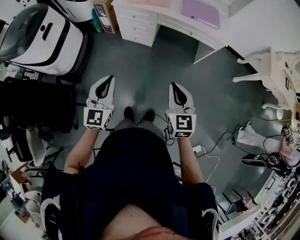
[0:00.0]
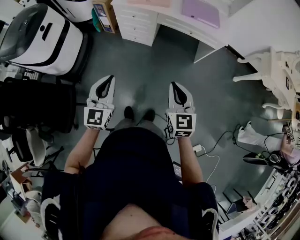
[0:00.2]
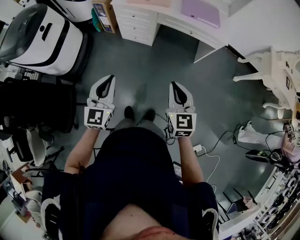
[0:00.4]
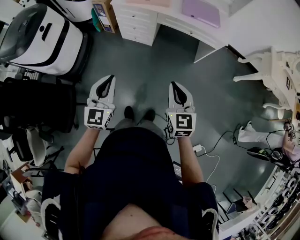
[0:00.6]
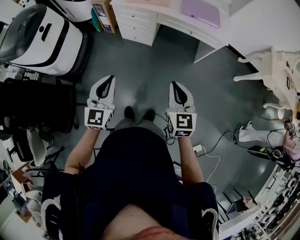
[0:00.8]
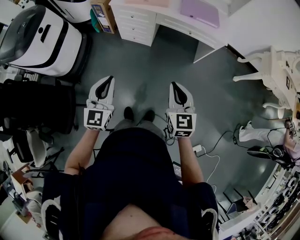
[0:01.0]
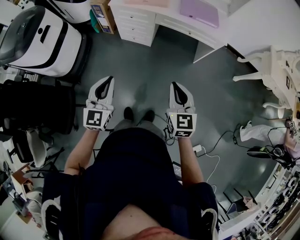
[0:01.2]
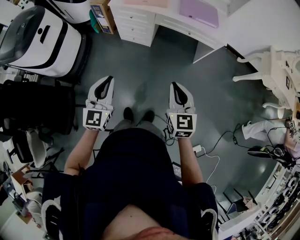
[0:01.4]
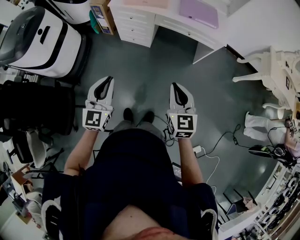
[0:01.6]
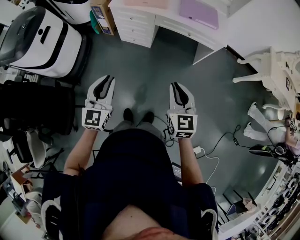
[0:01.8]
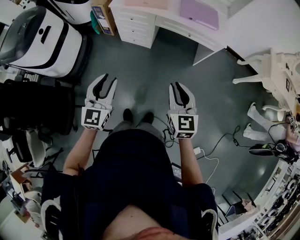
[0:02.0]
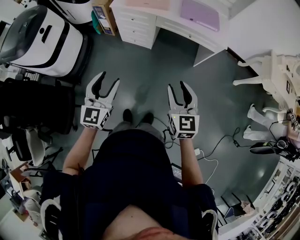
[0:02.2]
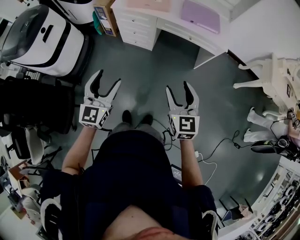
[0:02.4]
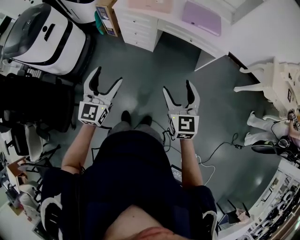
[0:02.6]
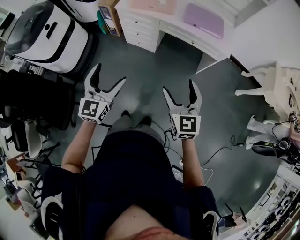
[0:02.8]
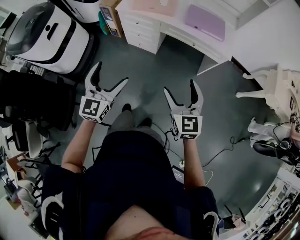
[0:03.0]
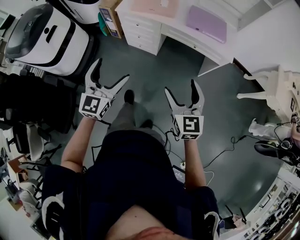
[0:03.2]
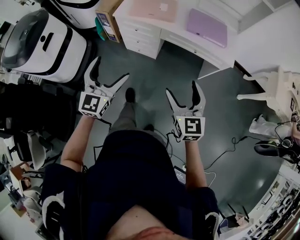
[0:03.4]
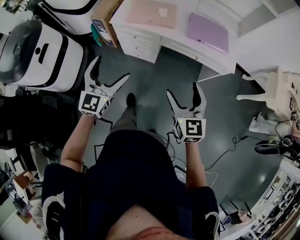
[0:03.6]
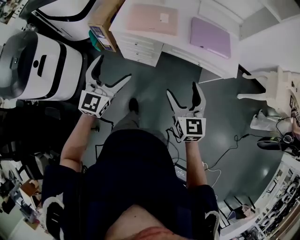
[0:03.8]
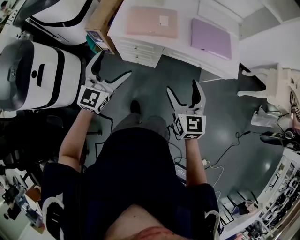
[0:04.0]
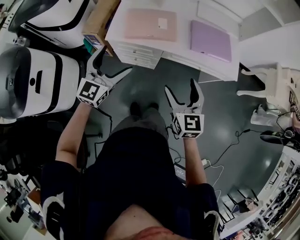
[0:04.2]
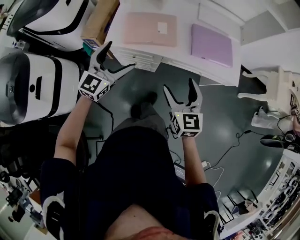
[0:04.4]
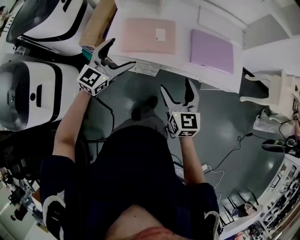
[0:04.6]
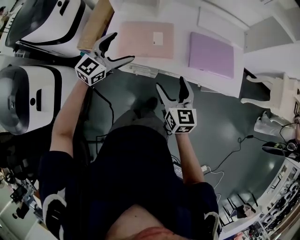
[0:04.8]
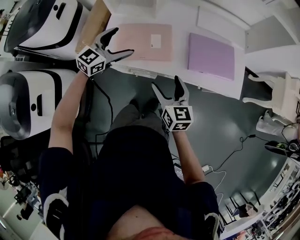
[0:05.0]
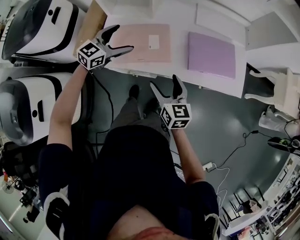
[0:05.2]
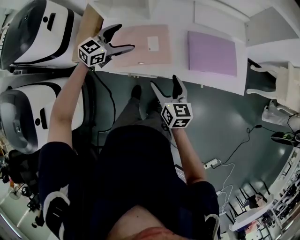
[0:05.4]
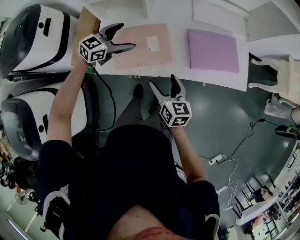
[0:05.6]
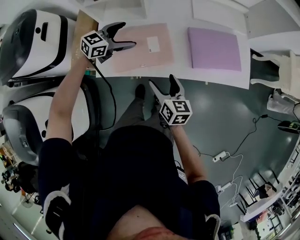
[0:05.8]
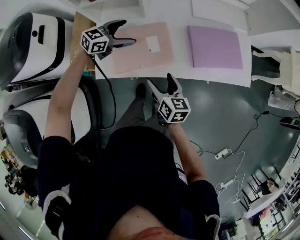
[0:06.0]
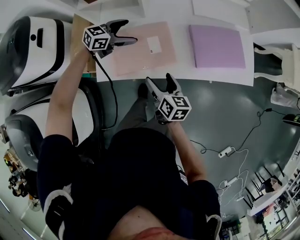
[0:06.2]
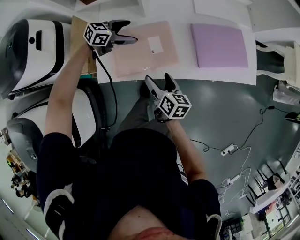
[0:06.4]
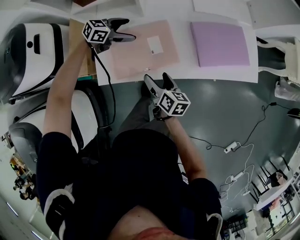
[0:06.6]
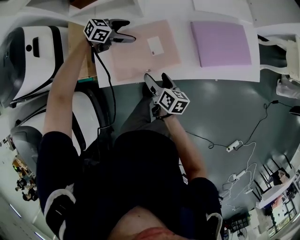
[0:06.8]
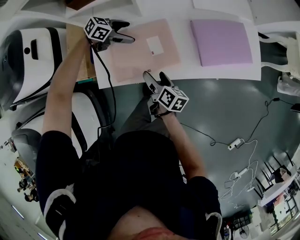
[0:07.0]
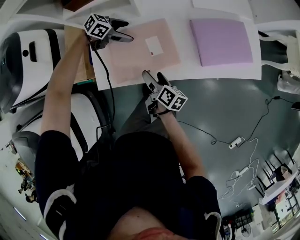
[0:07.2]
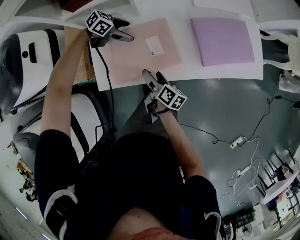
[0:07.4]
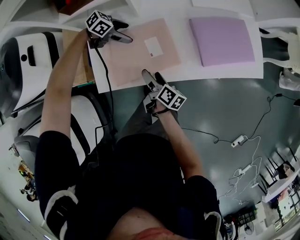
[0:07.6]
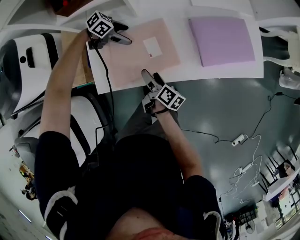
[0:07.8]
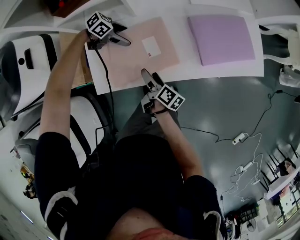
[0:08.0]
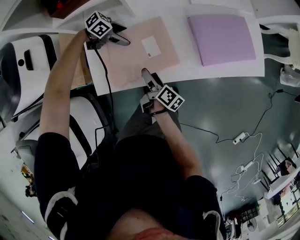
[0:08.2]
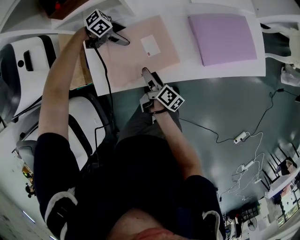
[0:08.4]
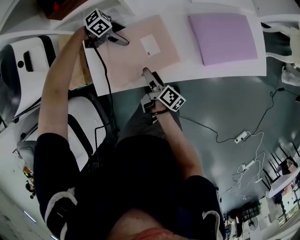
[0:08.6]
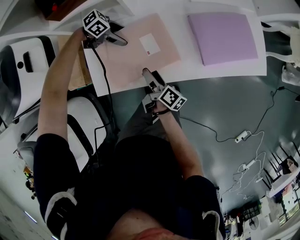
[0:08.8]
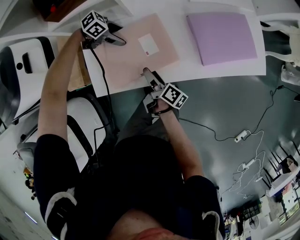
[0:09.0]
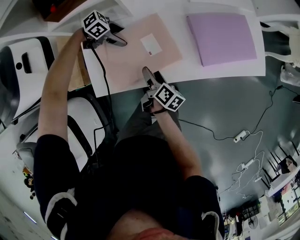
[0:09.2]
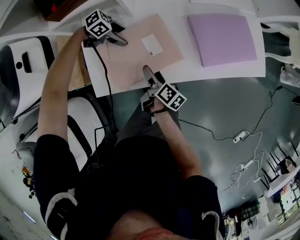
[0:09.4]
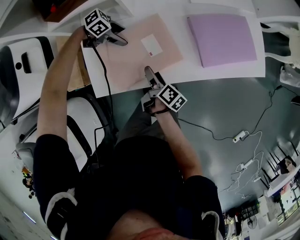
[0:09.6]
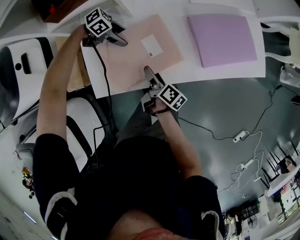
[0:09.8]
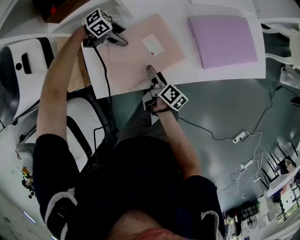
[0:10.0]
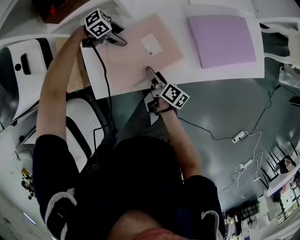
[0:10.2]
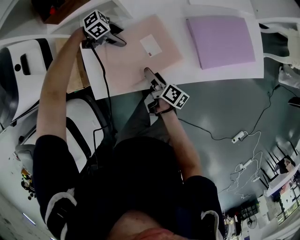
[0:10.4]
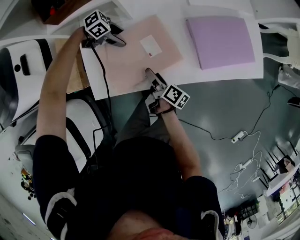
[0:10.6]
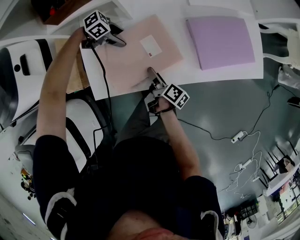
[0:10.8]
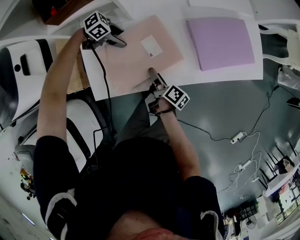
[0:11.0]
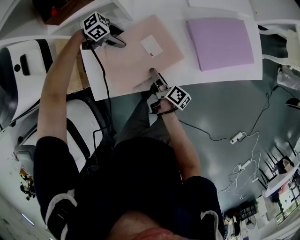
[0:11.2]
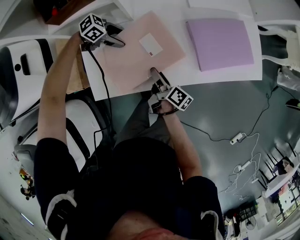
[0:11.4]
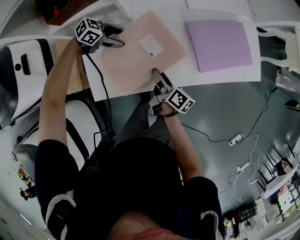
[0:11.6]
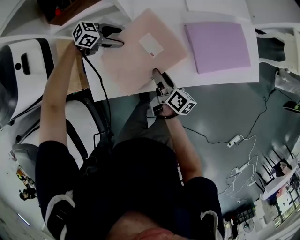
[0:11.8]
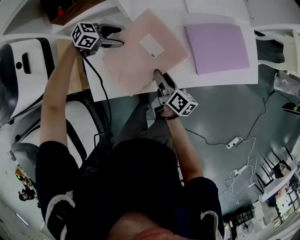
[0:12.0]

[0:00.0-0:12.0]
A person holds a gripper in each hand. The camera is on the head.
0:00.0 to 0:01.6: The grippers make only small movements.
0:01.6 to 0:03.0: The two grippers go roughly 5 cm forward. The left gripper opens up; the right gripper opens up.
0:03.0 to 0:04.4: The left gripper goes about 40 cm forward, and swivels approximately 30 degrees, while the right gripper is displaced forward and to the left by approximately 35 cm.
0:04.4 to 0:06.0: The left gripper heads forward and downward, covering some 35 cm, and changes its angle by about 40 degrees. Meanwhile the right gripper shifts roughly 20 cm forward, downward and to the left, and changes its angle by approximately 40 degrees.
0:06.0 to 0:07.6: The grippers both shift downward by approximately 15 cm. The left gripper swivels some 40 degrees, while the right gripper rolls clockwise, seen from behind, by approximately 40 degrees.
0:07.6 to 0:10.4: There are only small adjustments of the grippers.
0:10.4 to 0:12.0: Both grippers move upward, about 5 cm. The left gripper changes its angle by some 20 degrees.

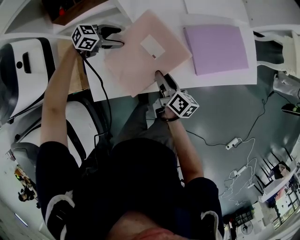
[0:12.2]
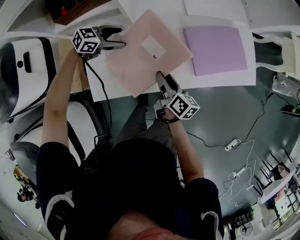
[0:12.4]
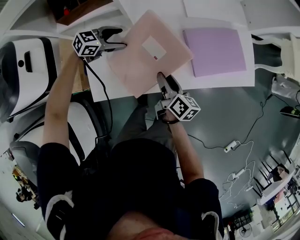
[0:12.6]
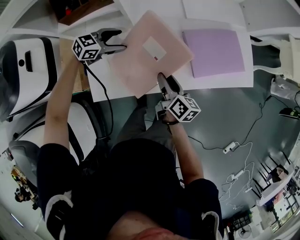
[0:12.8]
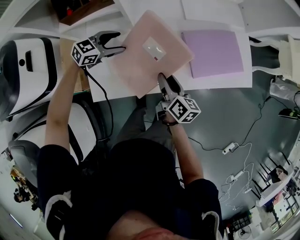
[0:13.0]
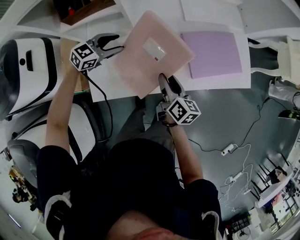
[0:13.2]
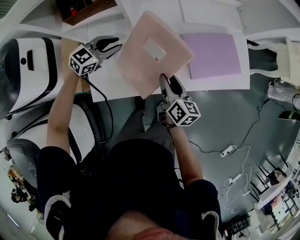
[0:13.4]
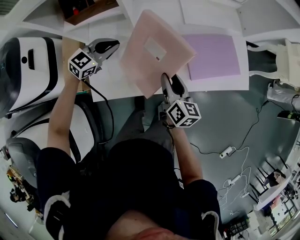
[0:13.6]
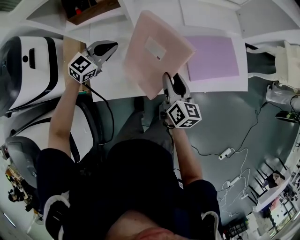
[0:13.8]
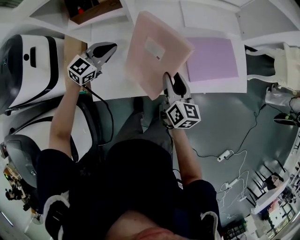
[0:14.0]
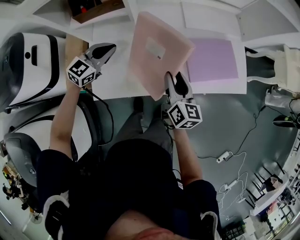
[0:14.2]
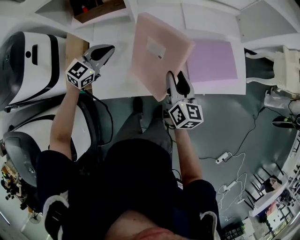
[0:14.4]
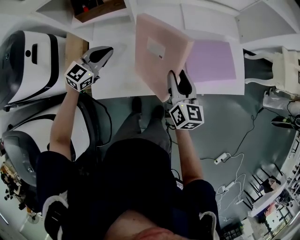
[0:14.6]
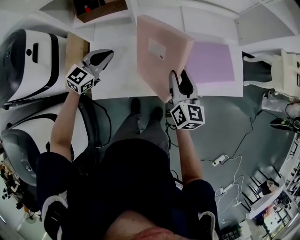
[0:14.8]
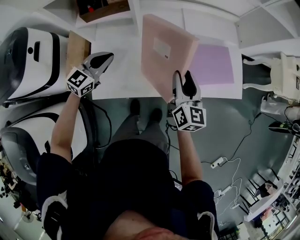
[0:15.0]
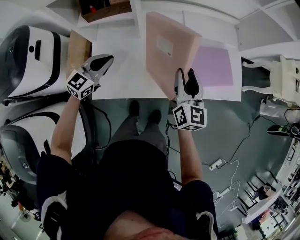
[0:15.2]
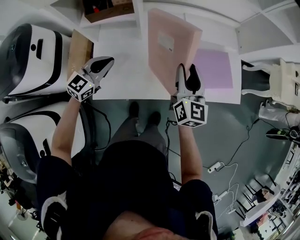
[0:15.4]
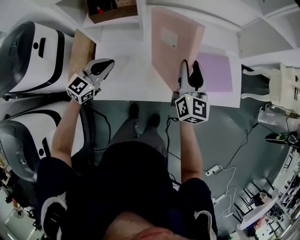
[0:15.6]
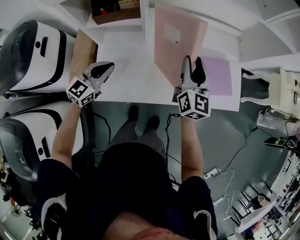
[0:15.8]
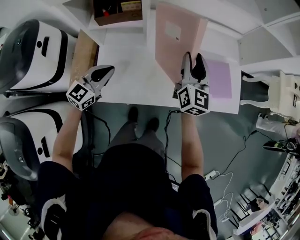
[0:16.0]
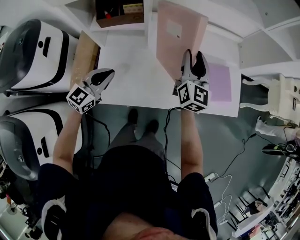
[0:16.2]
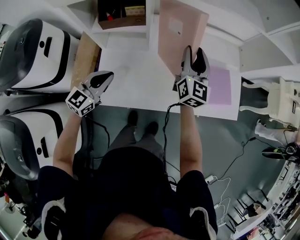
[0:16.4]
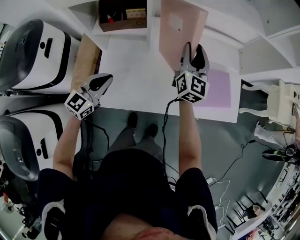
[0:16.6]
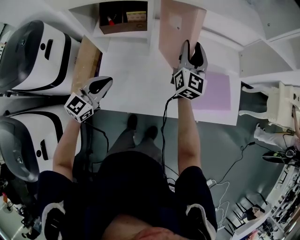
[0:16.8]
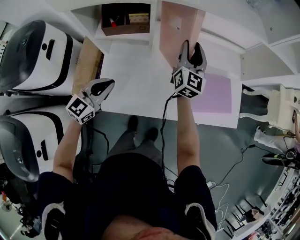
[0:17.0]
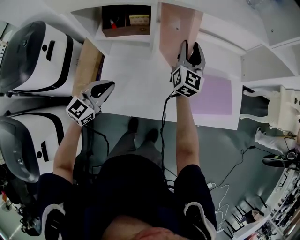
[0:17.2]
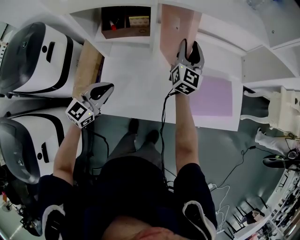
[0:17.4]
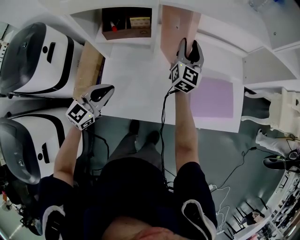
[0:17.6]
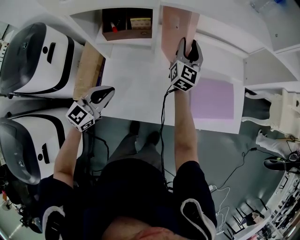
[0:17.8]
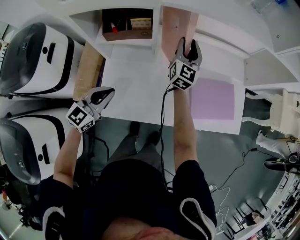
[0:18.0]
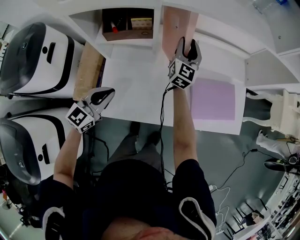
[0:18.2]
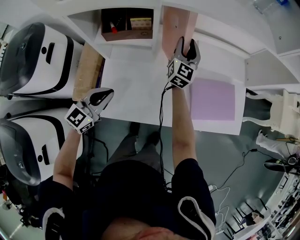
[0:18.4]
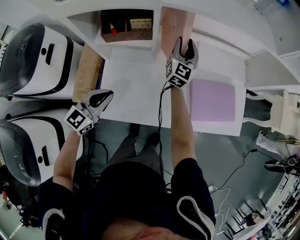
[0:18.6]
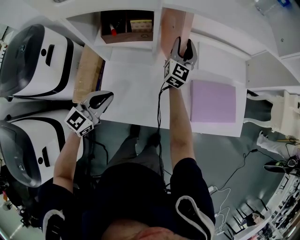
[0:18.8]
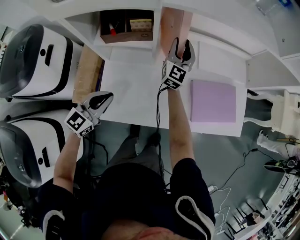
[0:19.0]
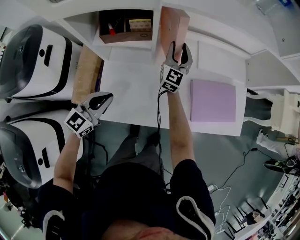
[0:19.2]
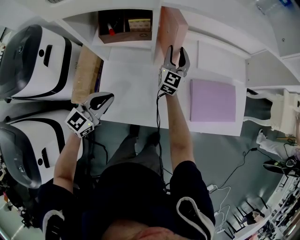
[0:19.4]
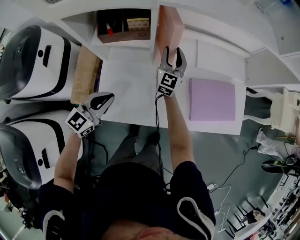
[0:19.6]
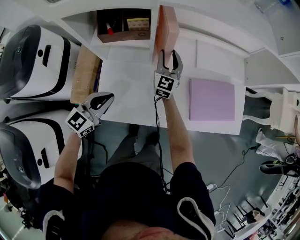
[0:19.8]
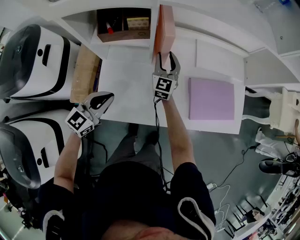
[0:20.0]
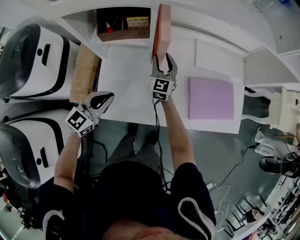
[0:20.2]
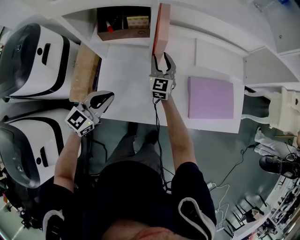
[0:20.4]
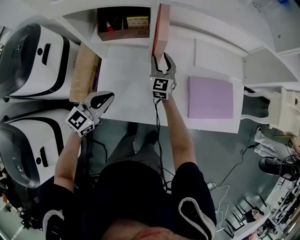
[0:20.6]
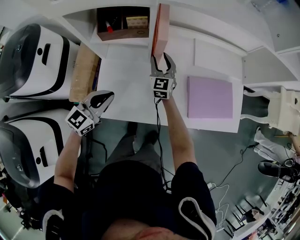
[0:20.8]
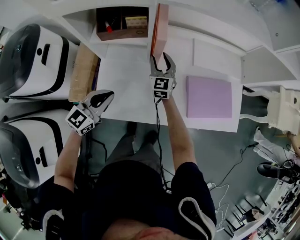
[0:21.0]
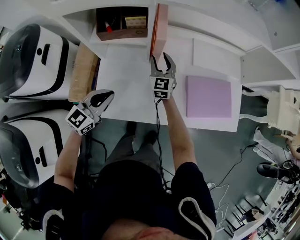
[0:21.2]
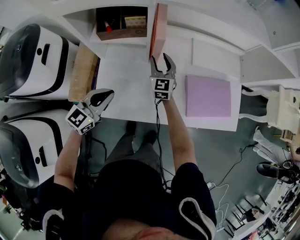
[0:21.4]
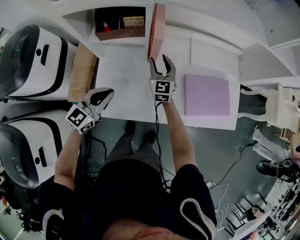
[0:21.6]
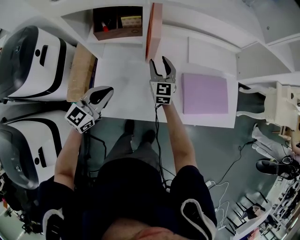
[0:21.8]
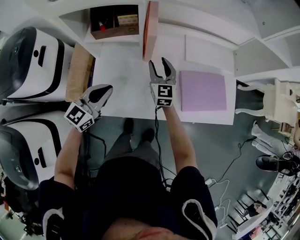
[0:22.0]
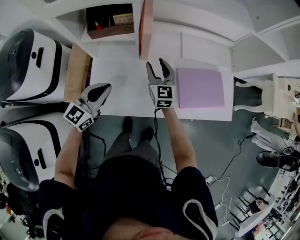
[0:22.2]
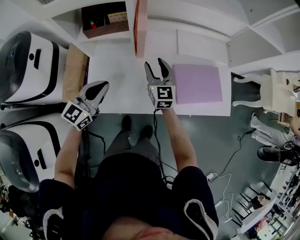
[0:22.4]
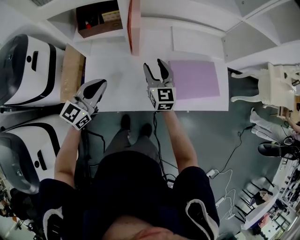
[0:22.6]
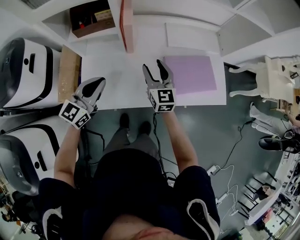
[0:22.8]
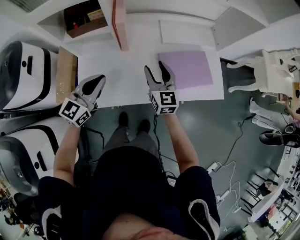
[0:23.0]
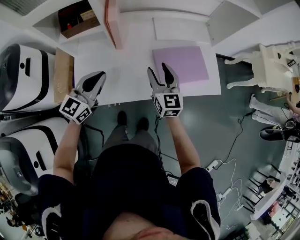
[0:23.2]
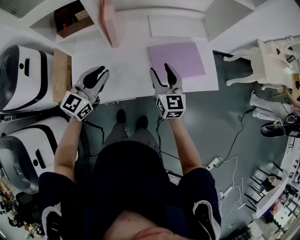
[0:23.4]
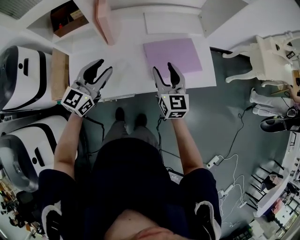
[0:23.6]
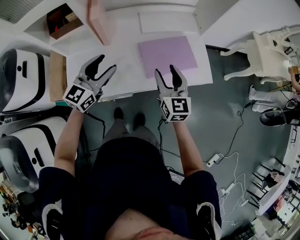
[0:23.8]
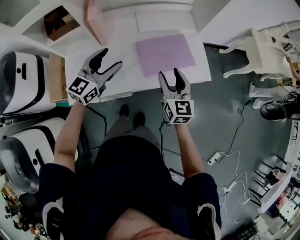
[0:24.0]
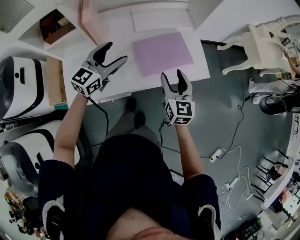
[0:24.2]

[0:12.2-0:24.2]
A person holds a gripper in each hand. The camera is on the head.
0:12.2 to 0:13.8: Both grippers travel together upward, some 10 cm. The left gripper swivels some 40 degrees, and closes its fingers; the right gripper swivels approximately 30 degrees.
0:13.8 to 0:15.2: The left gripper shifts roughly 5 cm backward. Meanwhile the right gripper moves upward, approximately 10 cm, and rotates about 20 degrees.
0:15.2 to 0:16.6: The right gripper goes about 15 cm forward, to the left and upward. Meanwhile the left gripper changes place by some 5 cm.
0:16.6 to 0:18.2: The right gripper is displaced forward, to the left and downward by approximately 15 cm.
0:18.2 to 0:19.8: The right gripper moves downward, some 10 cm.
0:19.8 to 0:21.2: The grippers make only small movements.
0:21.2 to 0:22.6: The left gripper ends up approximately 5 cm from where it was. Meanwhile the right gripper moves backward, to the right and upward, approximately 15 cm.
0:22.6 to 0:24.2: Both grippers move to the right, approximately 25 cm. The left gripper opens its fingers.
